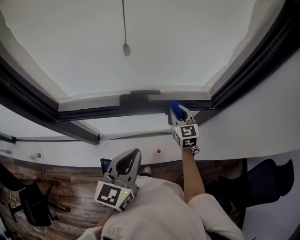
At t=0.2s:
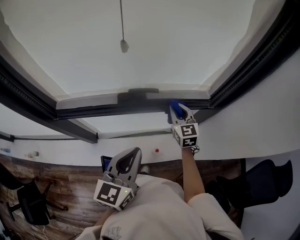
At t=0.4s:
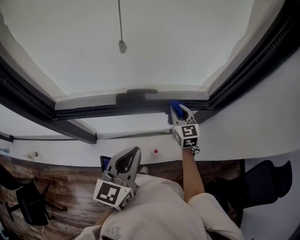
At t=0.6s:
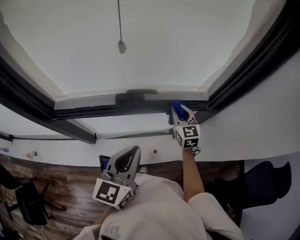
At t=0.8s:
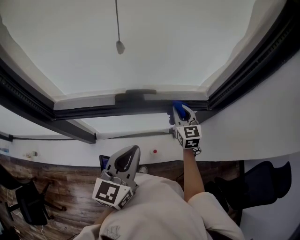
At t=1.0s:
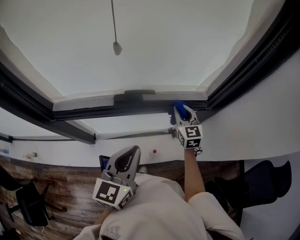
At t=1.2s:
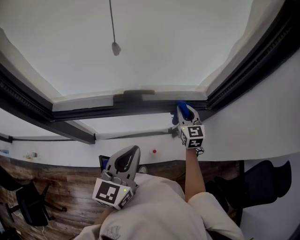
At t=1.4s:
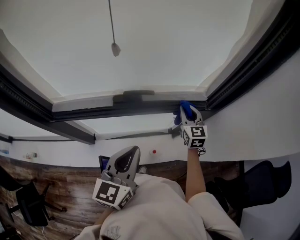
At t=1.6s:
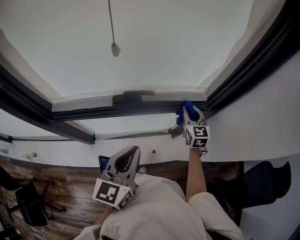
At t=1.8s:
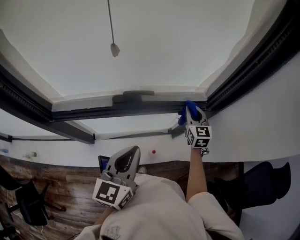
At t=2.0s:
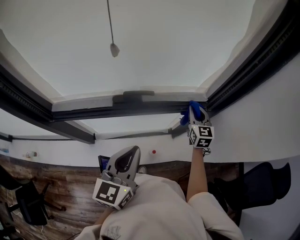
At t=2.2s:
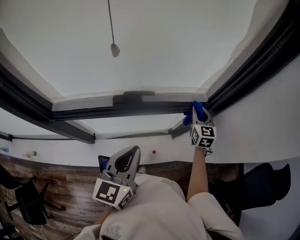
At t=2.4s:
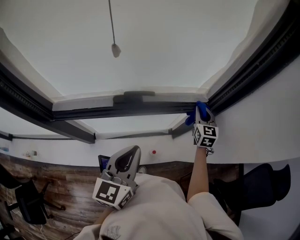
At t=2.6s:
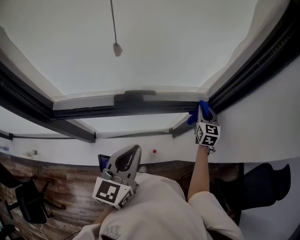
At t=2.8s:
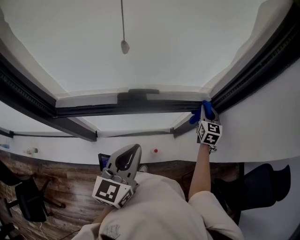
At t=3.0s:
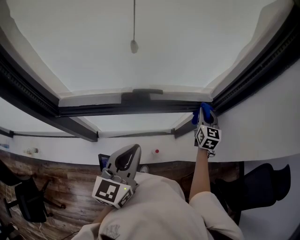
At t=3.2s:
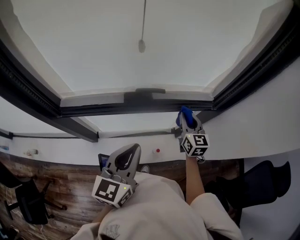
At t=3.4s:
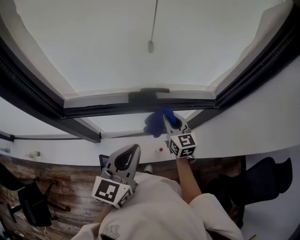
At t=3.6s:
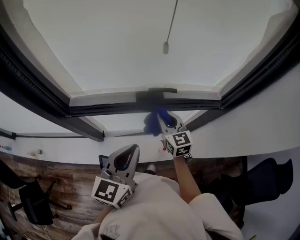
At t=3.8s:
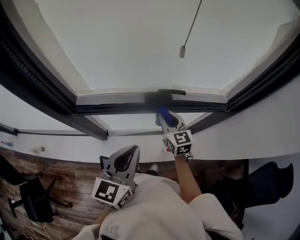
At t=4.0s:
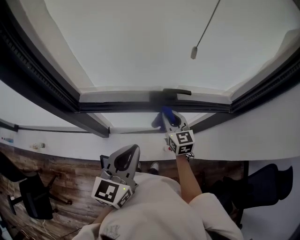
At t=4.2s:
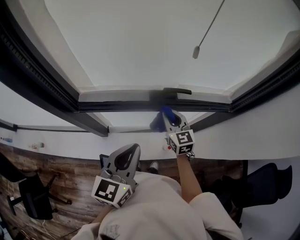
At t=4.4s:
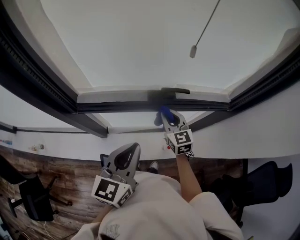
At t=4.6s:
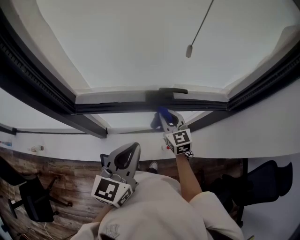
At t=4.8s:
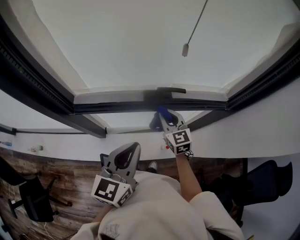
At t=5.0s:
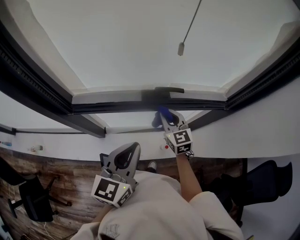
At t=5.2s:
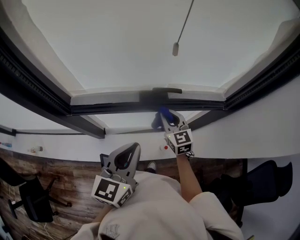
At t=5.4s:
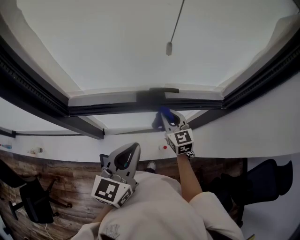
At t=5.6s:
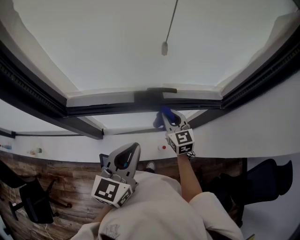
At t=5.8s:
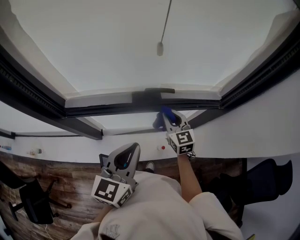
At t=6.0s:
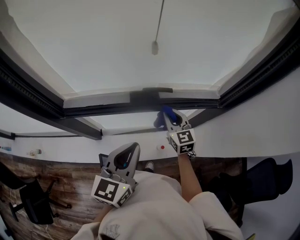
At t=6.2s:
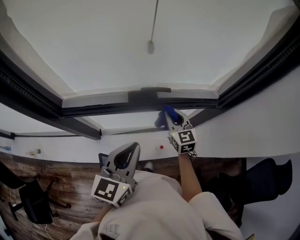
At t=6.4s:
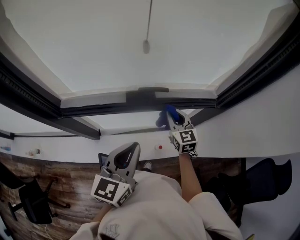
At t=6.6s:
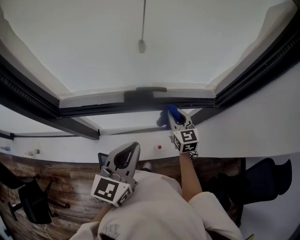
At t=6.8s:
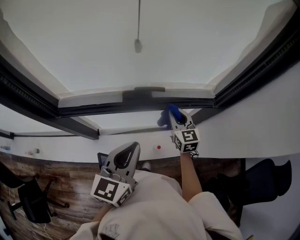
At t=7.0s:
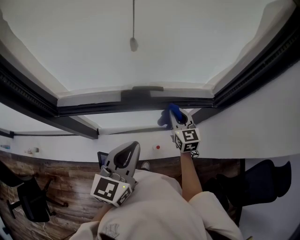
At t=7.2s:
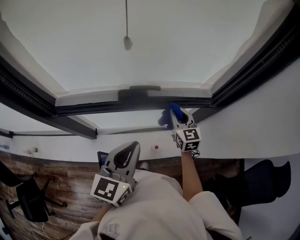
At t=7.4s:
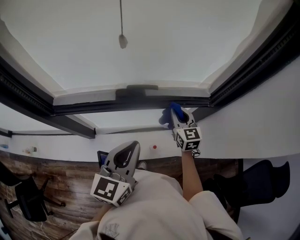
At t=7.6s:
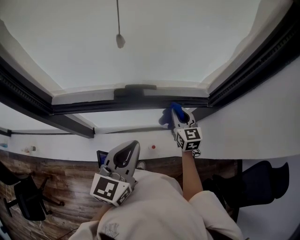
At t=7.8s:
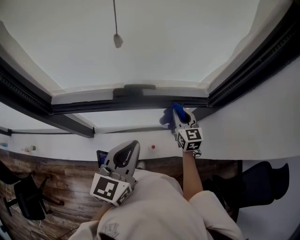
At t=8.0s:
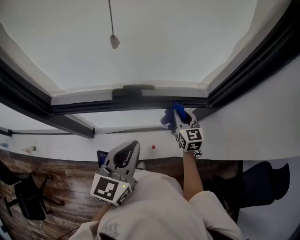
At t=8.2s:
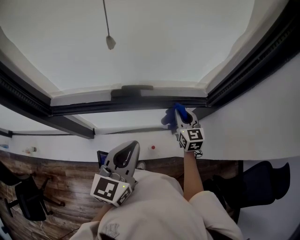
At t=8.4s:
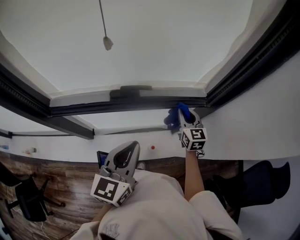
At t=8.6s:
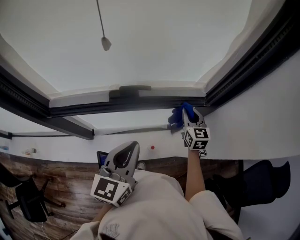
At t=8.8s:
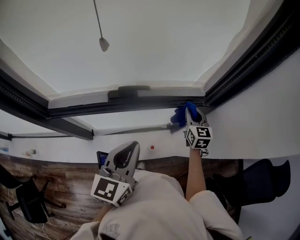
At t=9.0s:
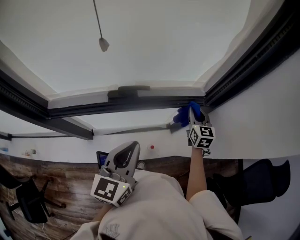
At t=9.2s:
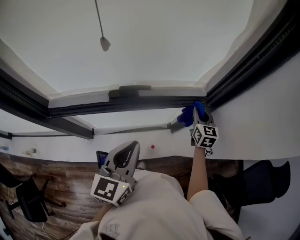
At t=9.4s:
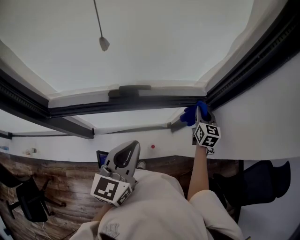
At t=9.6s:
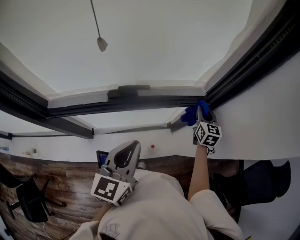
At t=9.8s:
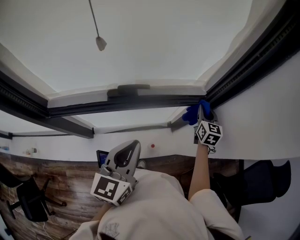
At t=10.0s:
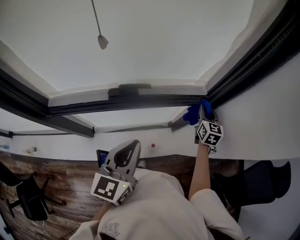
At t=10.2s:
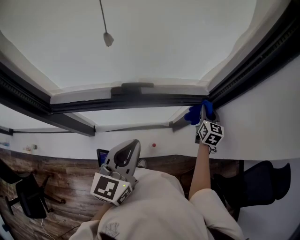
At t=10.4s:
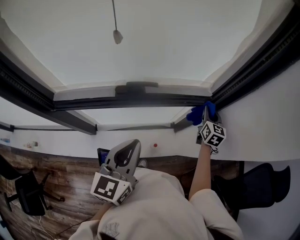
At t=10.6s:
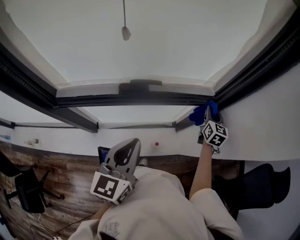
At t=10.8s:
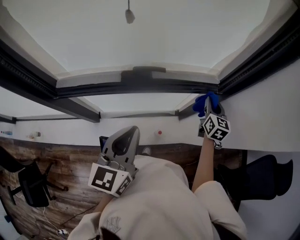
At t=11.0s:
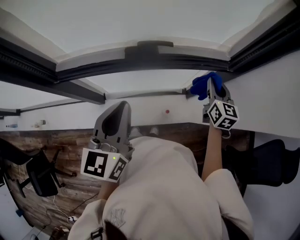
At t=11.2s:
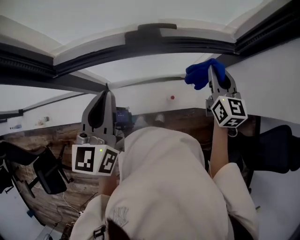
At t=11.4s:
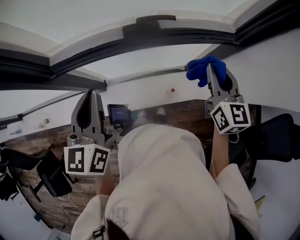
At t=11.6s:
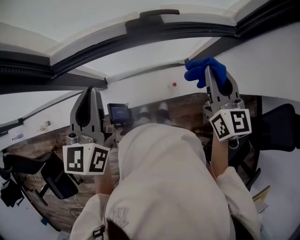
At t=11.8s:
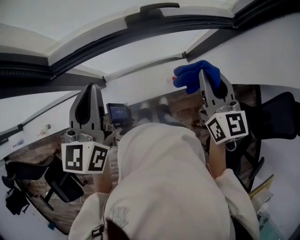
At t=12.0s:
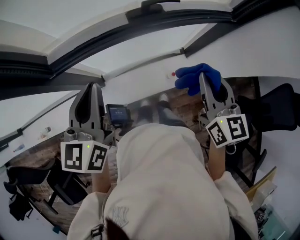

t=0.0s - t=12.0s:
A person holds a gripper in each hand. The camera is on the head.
t=0.0s - t=1.6s: The right gripper shifts approximately 10 cm to the right.
t=1.6s - t=3.0s: The right gripper moves to the right, about 5 cm.
t=3.0s - t=4.4s: The left gripper goes roughly 10 cm to the left. Meanwhile the right gripper shifts roughly 30 cm to the left, and changes its angle by some 30 degrees.
t=4.4s - t=6.0s: Both grippers travel together to the right, approximately 10 cm.
t=6.0s - t=7.6s: The left gripper is displaced to the right by some 5 cm, while the right gripper moves to the right, approximately 10 cm.
t=7.6s - t=9.0s: The right gripper travels to the right by some 10 cm.
t=9.0s - t=10.4s: The right gripper travels to the right by some 5 cm.
t=10.4s - t=12.0s: The left gripper is displaced to the left by approximately 25 cm; the right gripper travels backward and to the left by roughly 35 cm.

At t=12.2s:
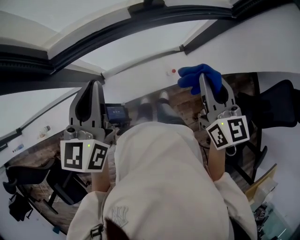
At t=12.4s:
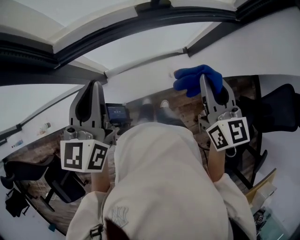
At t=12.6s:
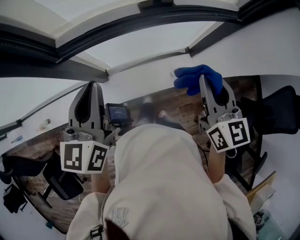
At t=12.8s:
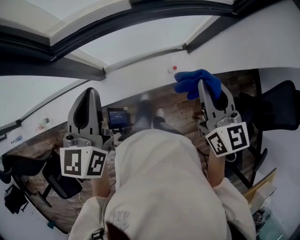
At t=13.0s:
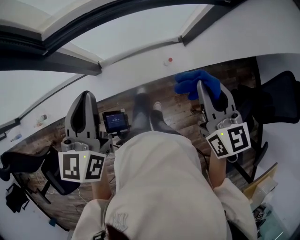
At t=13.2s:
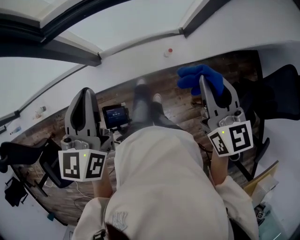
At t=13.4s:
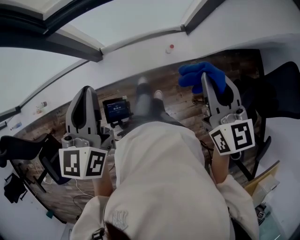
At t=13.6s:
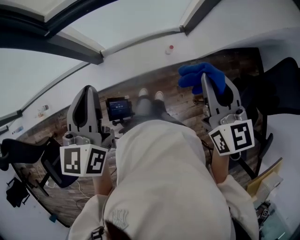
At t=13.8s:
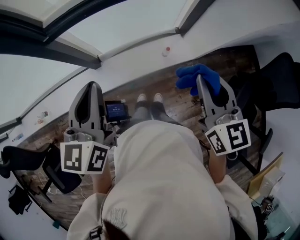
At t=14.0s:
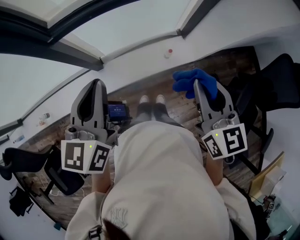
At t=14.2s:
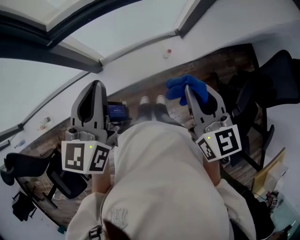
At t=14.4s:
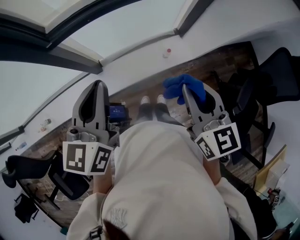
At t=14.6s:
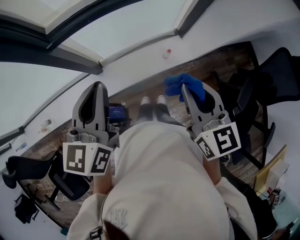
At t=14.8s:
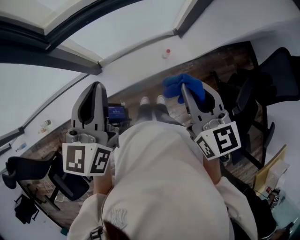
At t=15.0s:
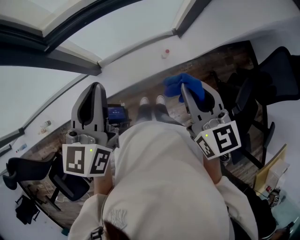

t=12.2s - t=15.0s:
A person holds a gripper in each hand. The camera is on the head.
t=12.2s - t=13.6s: Both grippers move backward, roughly 20 cm.
t=13.6s - t=15.0s: The right gripper goes about 5 cm to the left.

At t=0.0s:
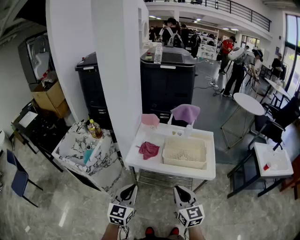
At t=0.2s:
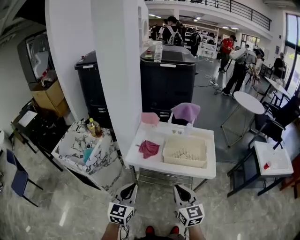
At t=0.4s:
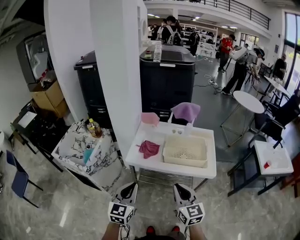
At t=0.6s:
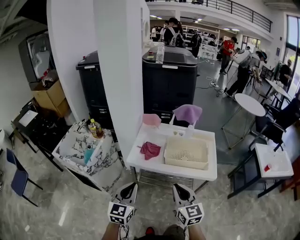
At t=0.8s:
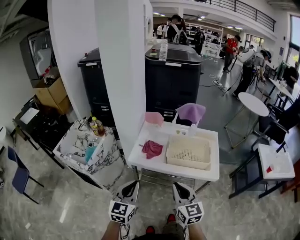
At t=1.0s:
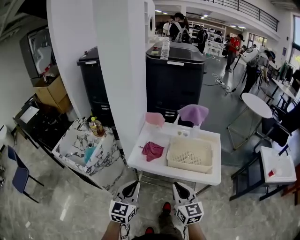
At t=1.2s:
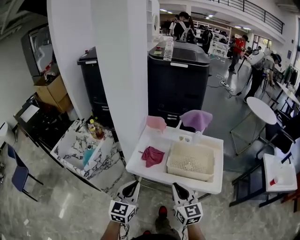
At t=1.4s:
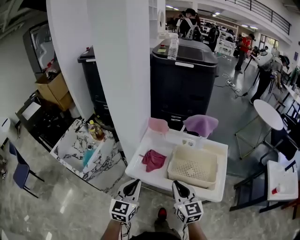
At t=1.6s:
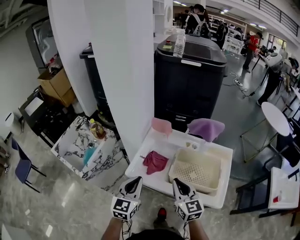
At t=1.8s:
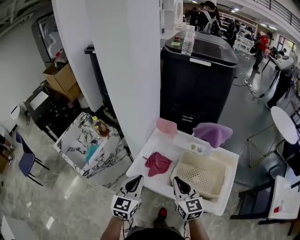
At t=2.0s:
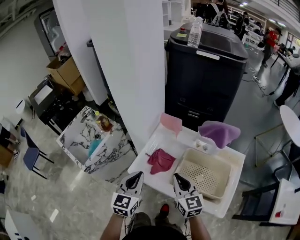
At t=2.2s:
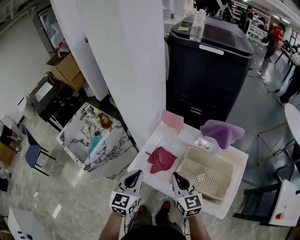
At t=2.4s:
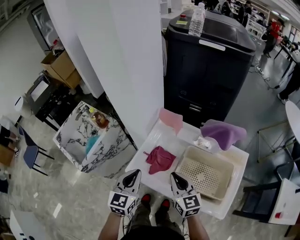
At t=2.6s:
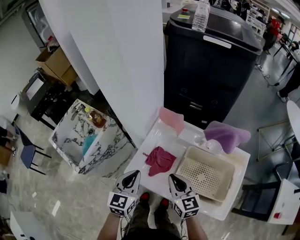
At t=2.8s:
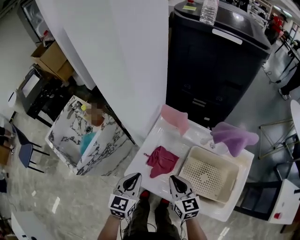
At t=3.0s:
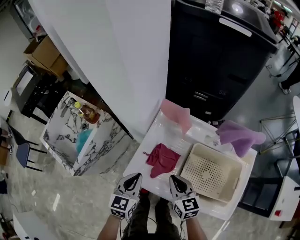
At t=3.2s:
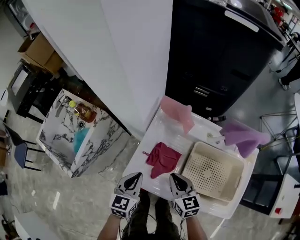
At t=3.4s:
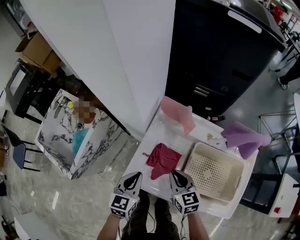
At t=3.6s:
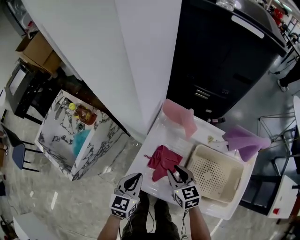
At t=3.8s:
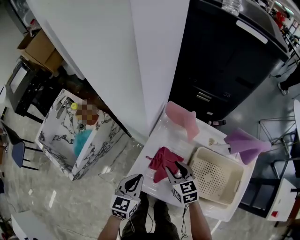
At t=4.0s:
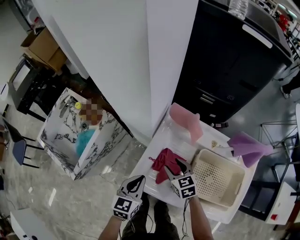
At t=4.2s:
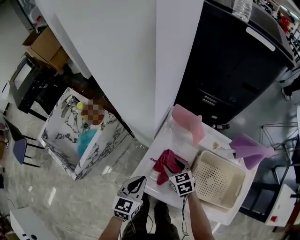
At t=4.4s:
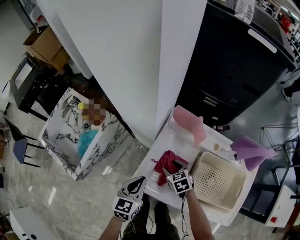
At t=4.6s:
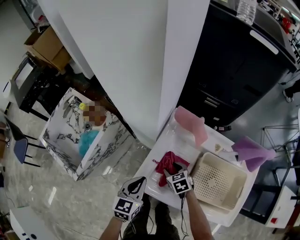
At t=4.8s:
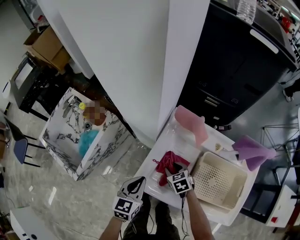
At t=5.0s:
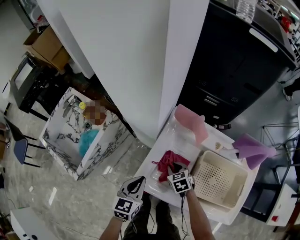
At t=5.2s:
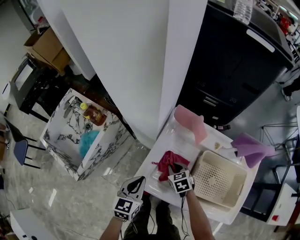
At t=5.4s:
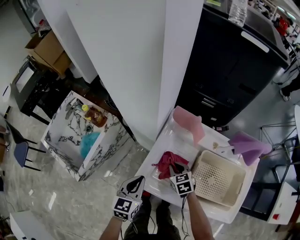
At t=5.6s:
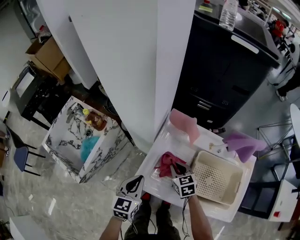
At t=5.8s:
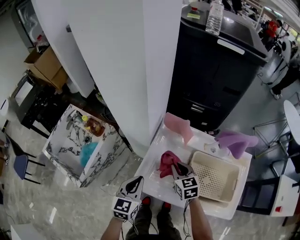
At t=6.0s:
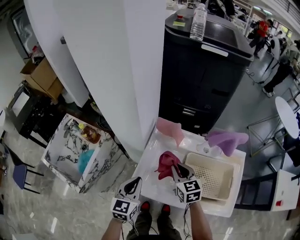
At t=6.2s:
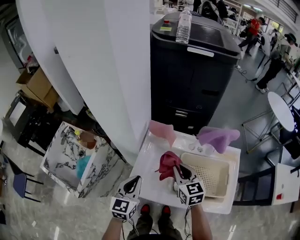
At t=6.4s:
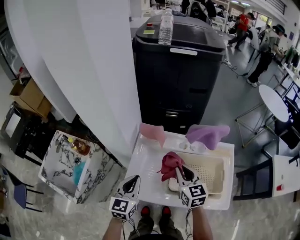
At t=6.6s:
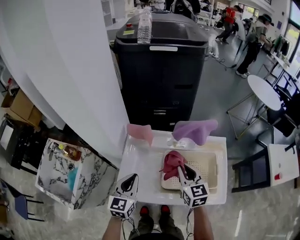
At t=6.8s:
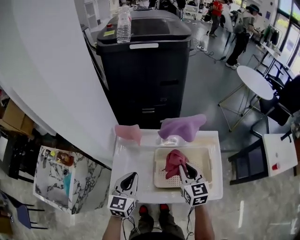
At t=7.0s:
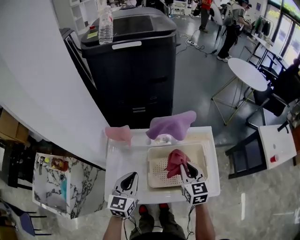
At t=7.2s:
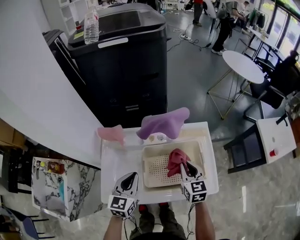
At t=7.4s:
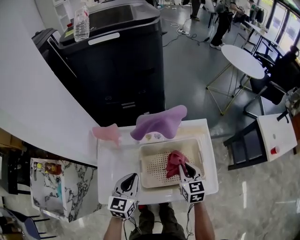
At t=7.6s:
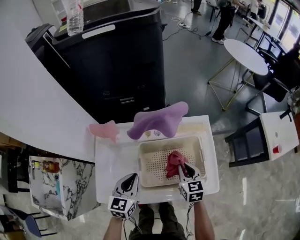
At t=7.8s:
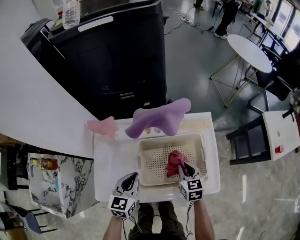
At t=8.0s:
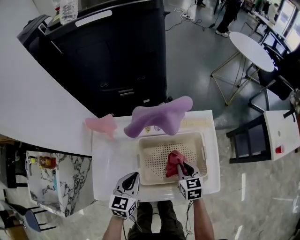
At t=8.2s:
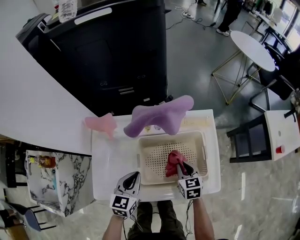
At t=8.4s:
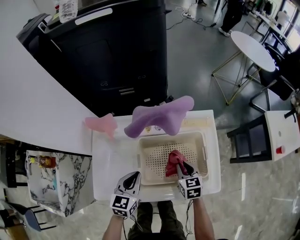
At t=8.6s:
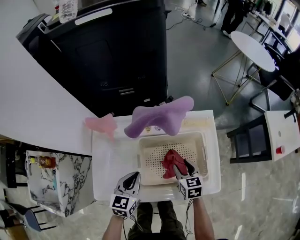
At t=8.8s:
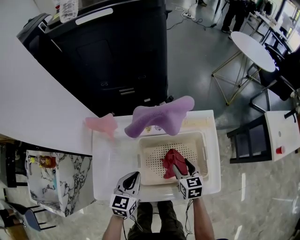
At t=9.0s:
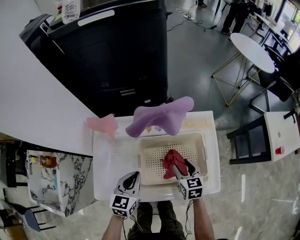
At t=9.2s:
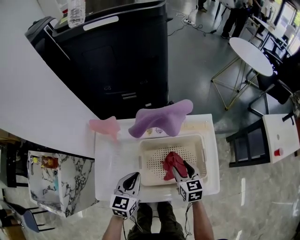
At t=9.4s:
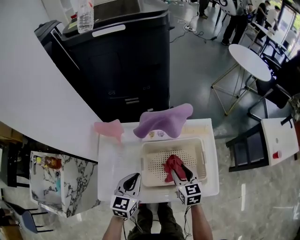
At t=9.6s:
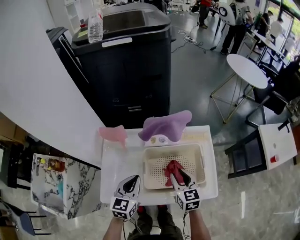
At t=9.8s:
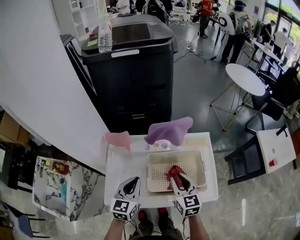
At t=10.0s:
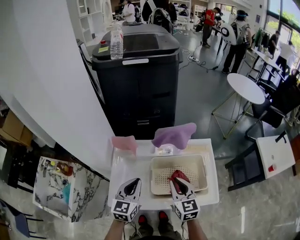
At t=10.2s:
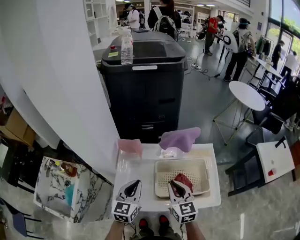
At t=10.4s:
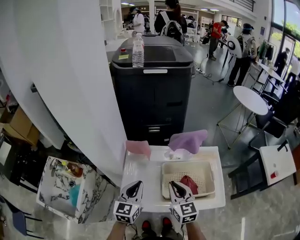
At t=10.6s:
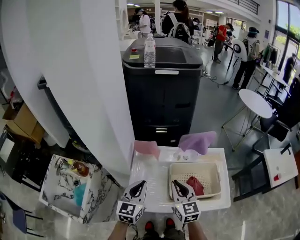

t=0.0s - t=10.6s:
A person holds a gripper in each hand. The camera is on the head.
t=0.0s - t=1.6s: Both grippers move forward, roughly 20 cm.
t=1.6s - t=3.0s: Both grippers move downward and forward, about 20 cm.
t=3.0s - t=4.6s: The right gripper heads downward and forward, covering approximately 15 cm, angles its fingers downward, by about 30 degrees, and opens.
t=4.6s - t=6.0s: The right gripper travels upward by roughly 20 cm, swivels roughly 30 degrees, and closes; the left gripper moves upward, roughly 10 cm.
t=6.0s - t=7.6s: The left gripper ends up about 25 cm from where it was, and turns by roughly 20 degrees, while the right gripper shifts by some 30 cm, and changes its angle by about 30 degrees.
t=7.6s - t=9.0s: The right gripper opens.
t=9.0s - t=10.6s: Both grippers travel together upward and to the left, approximately 25 cm. The right gripper changes its angle by about 30 degrees, and closes up.
